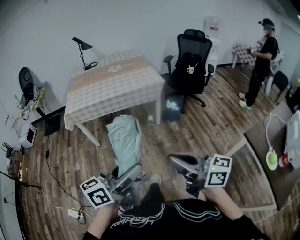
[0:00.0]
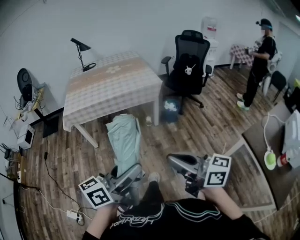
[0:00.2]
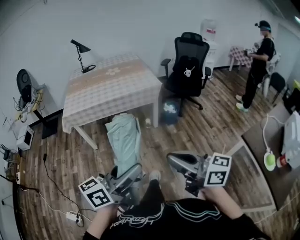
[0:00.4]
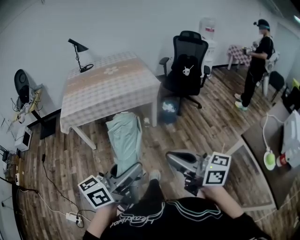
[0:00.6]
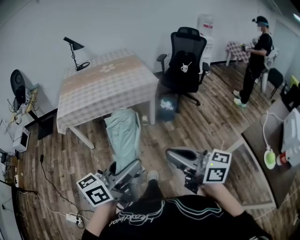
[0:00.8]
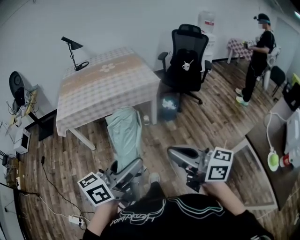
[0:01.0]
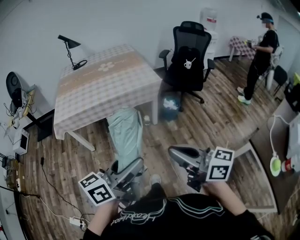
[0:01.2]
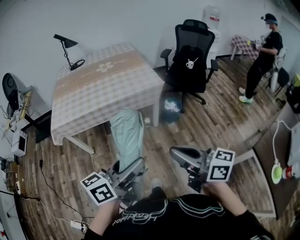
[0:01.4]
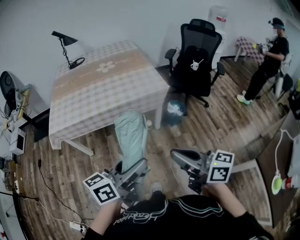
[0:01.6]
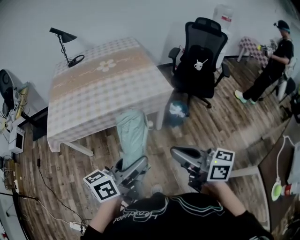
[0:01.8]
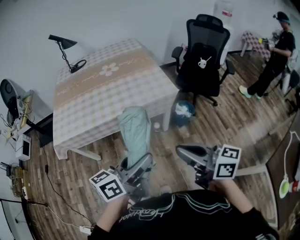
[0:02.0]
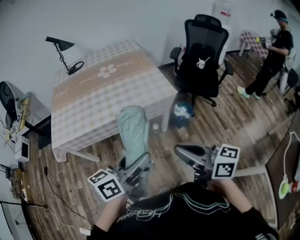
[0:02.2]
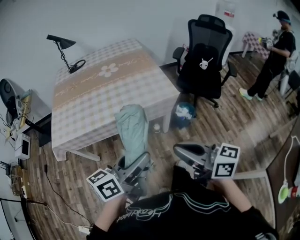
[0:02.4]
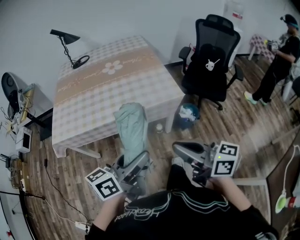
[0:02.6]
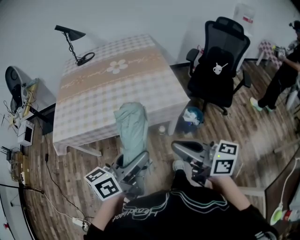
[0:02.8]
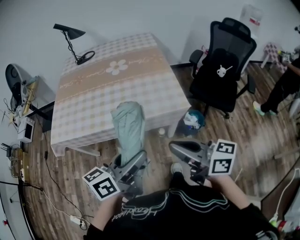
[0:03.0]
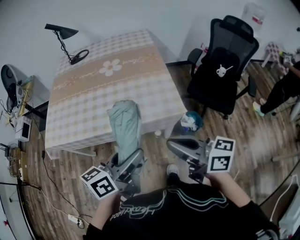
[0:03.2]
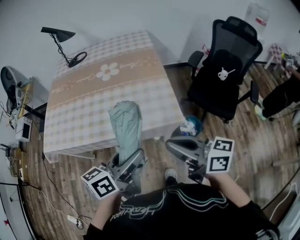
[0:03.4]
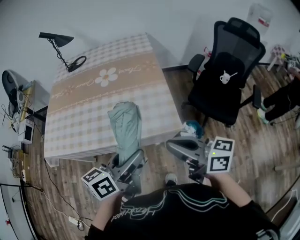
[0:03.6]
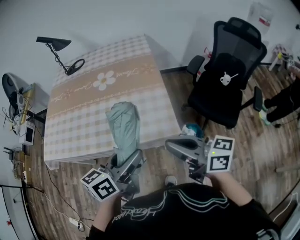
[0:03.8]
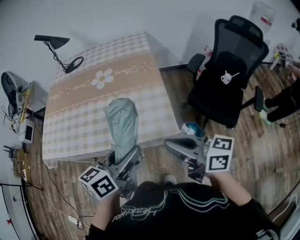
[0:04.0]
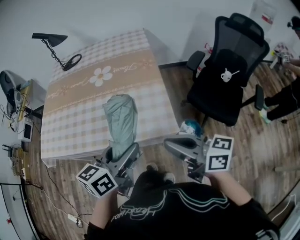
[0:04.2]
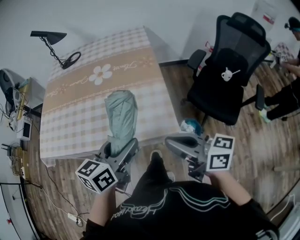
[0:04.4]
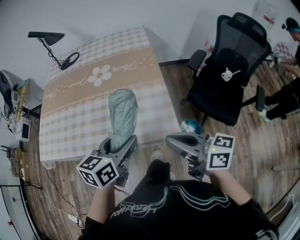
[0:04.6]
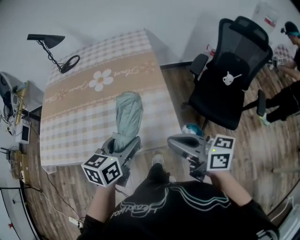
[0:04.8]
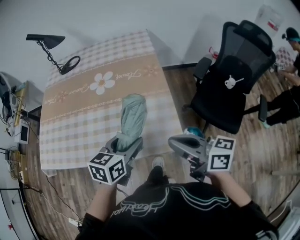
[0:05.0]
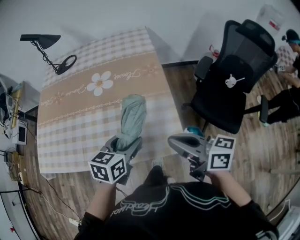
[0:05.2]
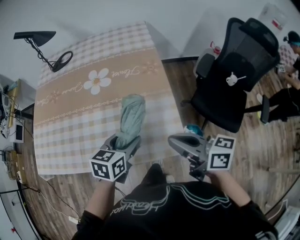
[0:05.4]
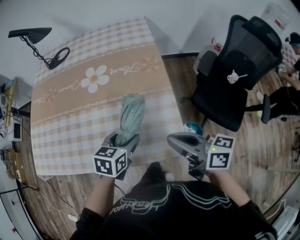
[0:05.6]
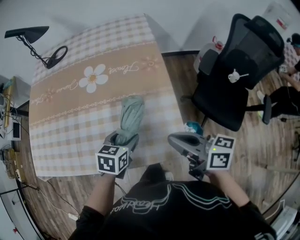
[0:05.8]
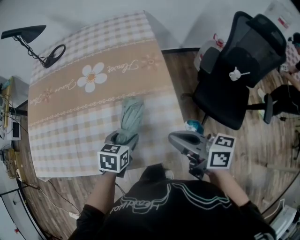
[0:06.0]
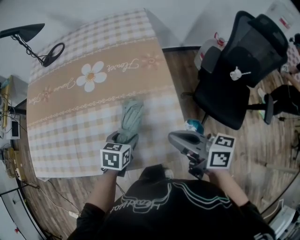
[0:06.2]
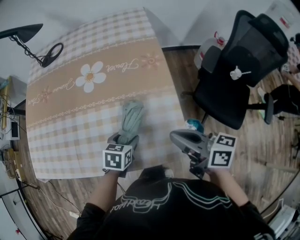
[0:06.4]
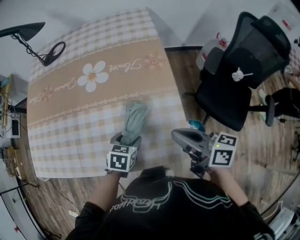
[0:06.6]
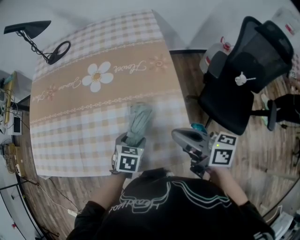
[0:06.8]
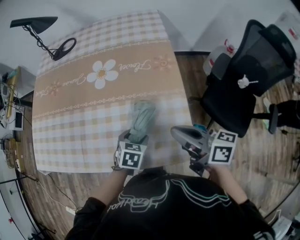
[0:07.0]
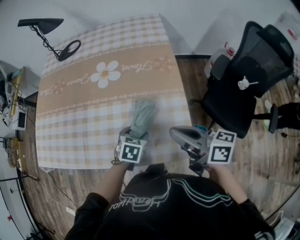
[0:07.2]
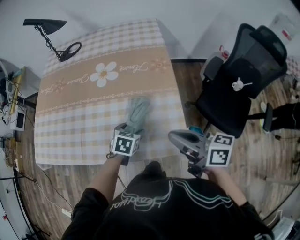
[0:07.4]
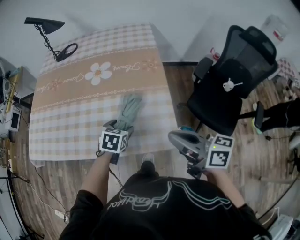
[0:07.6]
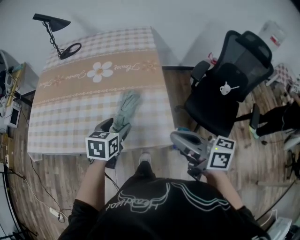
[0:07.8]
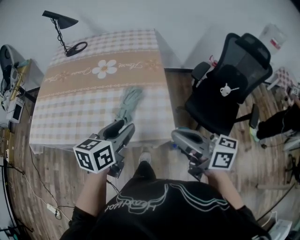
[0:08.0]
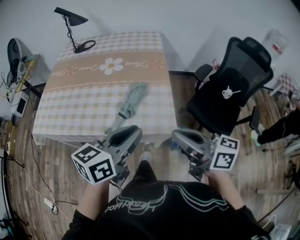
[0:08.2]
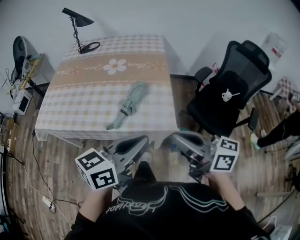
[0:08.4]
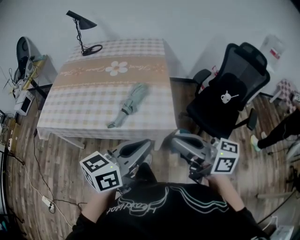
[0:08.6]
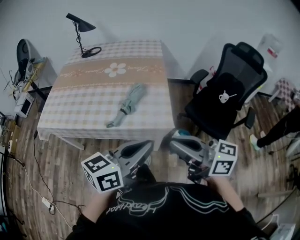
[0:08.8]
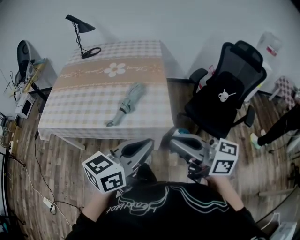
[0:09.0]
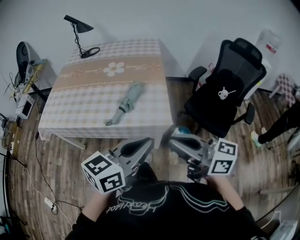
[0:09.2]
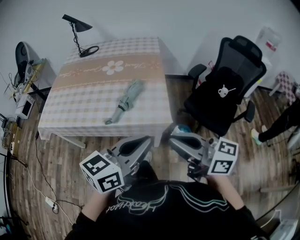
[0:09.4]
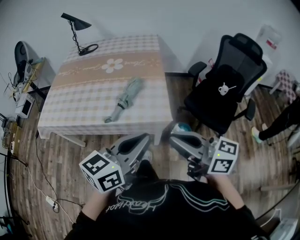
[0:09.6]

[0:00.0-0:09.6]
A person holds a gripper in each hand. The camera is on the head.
0:00.0 to 0:01.6: Both grippers travel together forward, approximately 25 cm.
0:01.6 to 0:03.2: The two grippers go roughly 25 cm forward.
0:03.2 to 0:04.8: The right gripper shifts approximately 15 cm forward and to the right. The left gripper heads forward, covering roughly 20 cm, and rotates approximately 30 degrees.
0:04.8 to 0:06.4: The right gripper heads forward and downward, covering some 15 cm. Meanwhile the left gripper shifts about 25 cm downward and forward, and swivels approximately 30 degrees.
0:06.4 to 0:08.0: The left gripper moves upward and backward, roughly 25 cm, and tips its fingers upward by roughly 30 degrees. The right gripper moves backward and upward, some 20 cm.
0:08.0 to 0:09.6: The right gripper travels backward by about 15 cm; the left gripper heads backward and upward, covering roughly 20 cm, and closes its fingers.

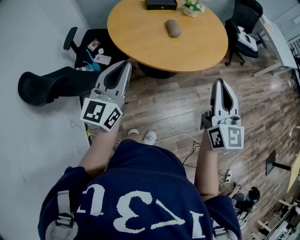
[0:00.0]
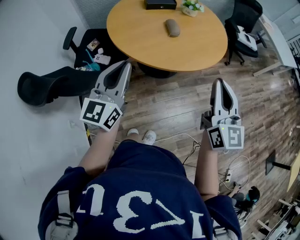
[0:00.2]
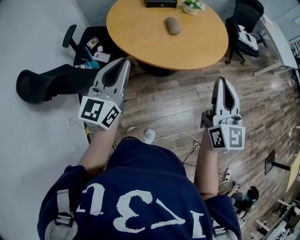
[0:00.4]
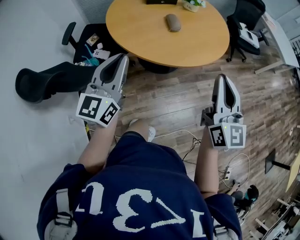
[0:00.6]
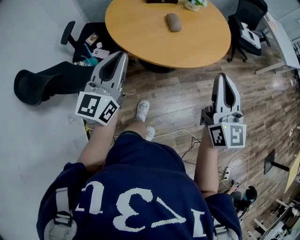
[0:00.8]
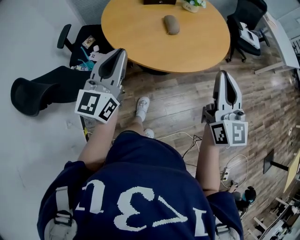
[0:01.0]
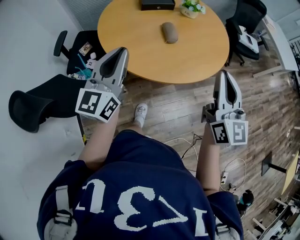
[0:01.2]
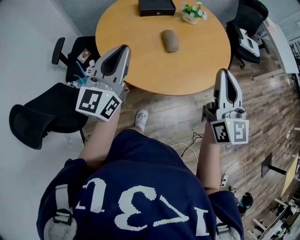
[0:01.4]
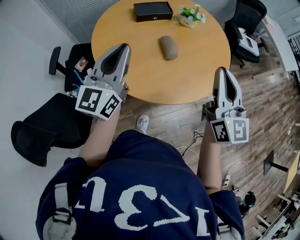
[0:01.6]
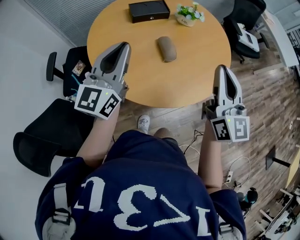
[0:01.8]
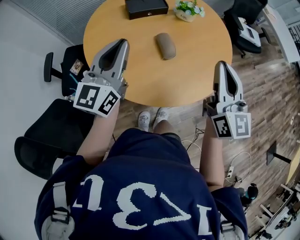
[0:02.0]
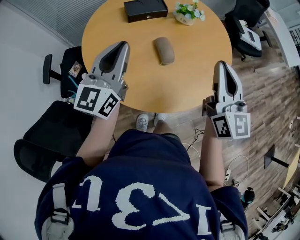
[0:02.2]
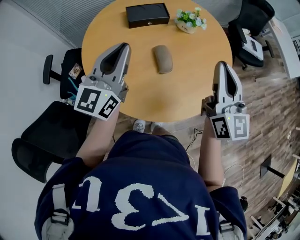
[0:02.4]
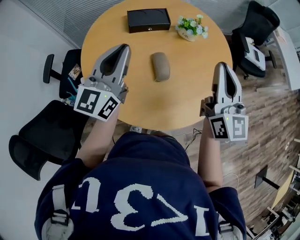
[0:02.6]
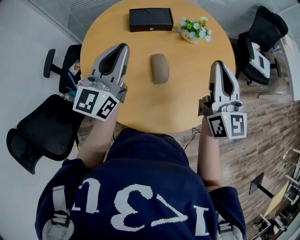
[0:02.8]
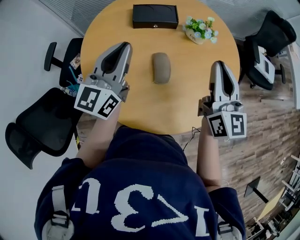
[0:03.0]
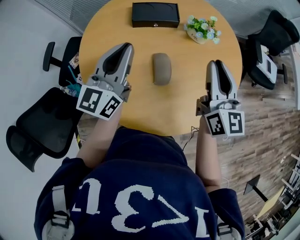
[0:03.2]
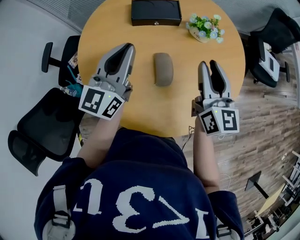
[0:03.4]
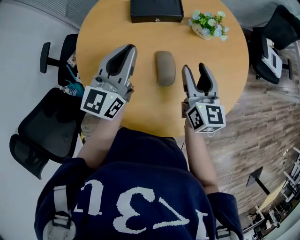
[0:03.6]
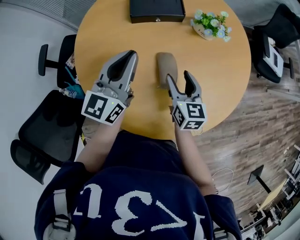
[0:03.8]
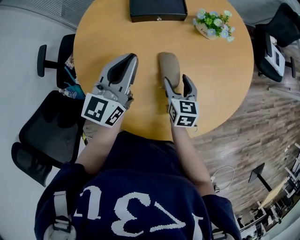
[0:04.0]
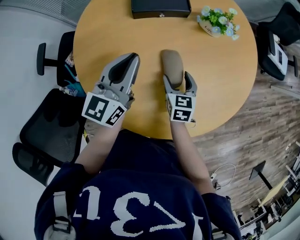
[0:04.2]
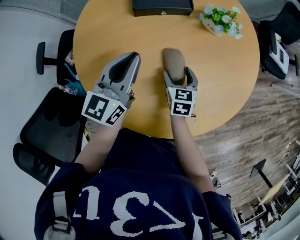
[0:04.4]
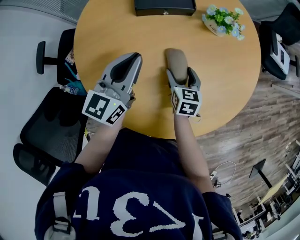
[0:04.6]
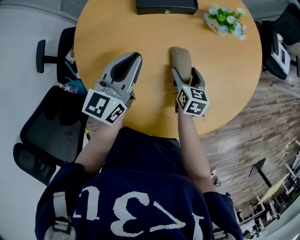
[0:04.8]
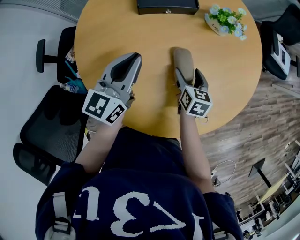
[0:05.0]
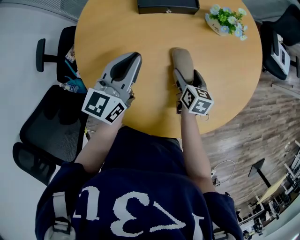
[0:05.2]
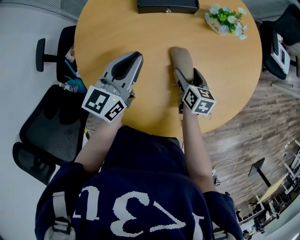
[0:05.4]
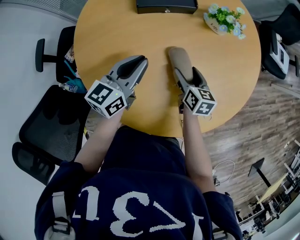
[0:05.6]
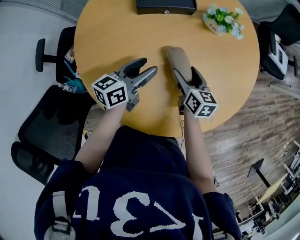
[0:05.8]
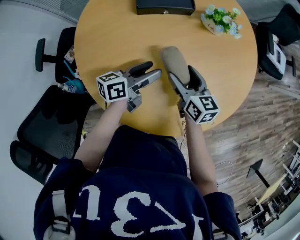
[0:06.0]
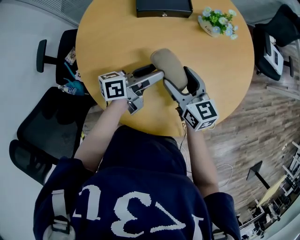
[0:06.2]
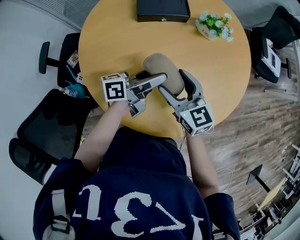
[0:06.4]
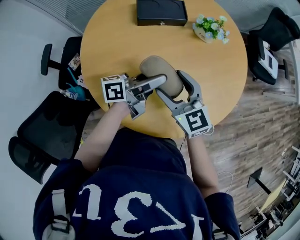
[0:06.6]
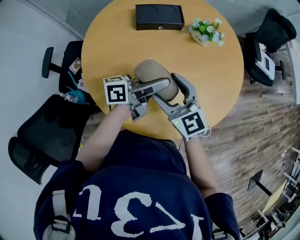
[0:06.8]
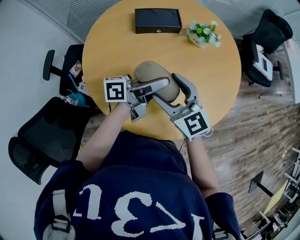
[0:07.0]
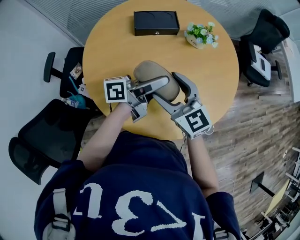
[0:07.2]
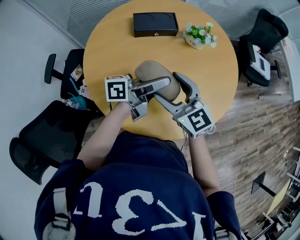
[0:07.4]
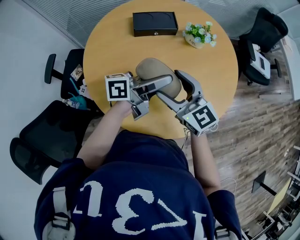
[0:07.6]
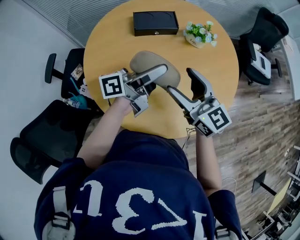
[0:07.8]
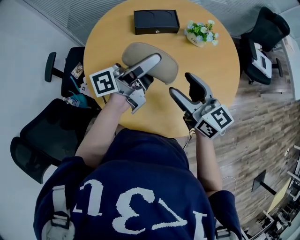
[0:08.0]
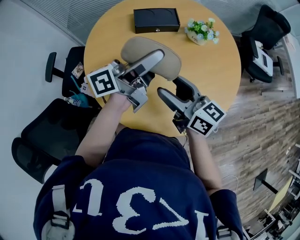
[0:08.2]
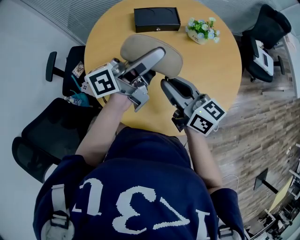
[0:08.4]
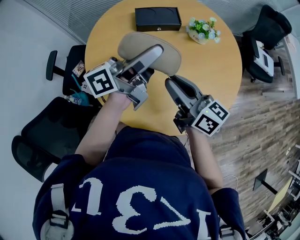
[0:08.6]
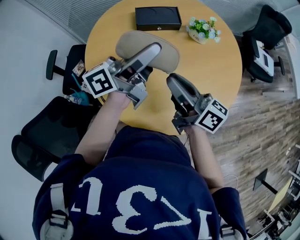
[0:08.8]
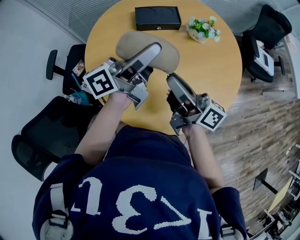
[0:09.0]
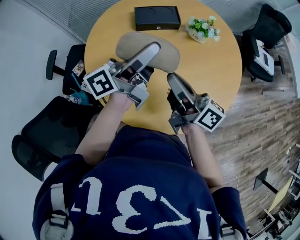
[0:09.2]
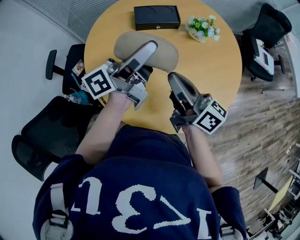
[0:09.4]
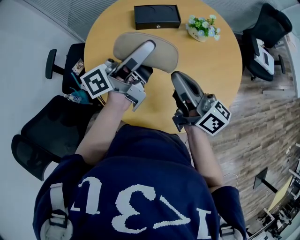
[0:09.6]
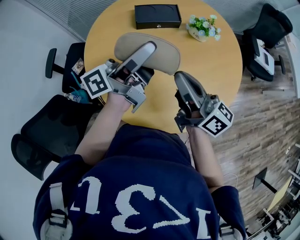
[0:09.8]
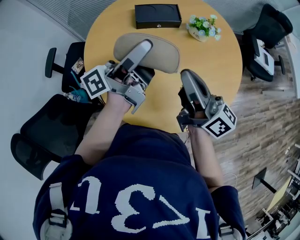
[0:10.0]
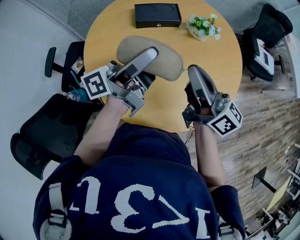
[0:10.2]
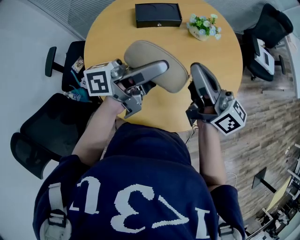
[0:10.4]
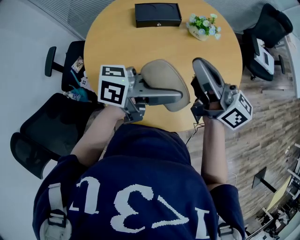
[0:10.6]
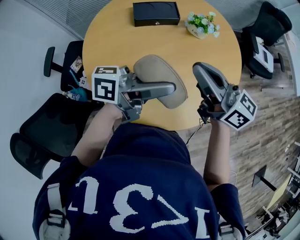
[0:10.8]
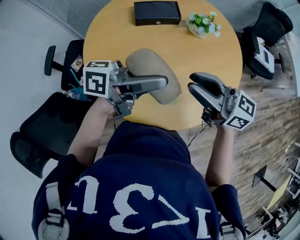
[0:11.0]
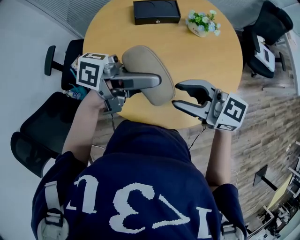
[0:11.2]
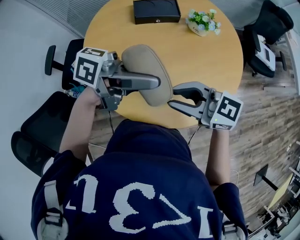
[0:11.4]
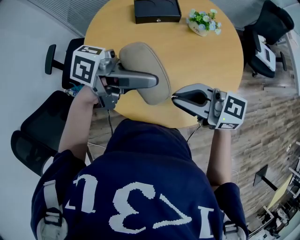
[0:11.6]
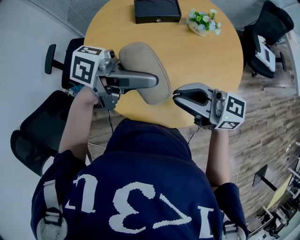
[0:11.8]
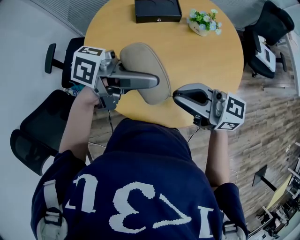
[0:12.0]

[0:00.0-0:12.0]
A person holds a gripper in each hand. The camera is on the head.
0:00.0 to 0:01.6: The two grippers go about 25 cm forward.
0:01.6 to 0:03.0: The grippers both shift forward by roughly 20 cm.
0:03.0 to 0:04.4: The left gripper shifts some 15 cm downward and forward. The right gripper heads downward, covering approximately 35 cm, angles its fingers downward, by some 50 degrees, and opens.
0:04.4 to 0:06.0: The right gripper is displaced upward by some 5 cm, and changes its angle by about 30 degrees; the left gripper heads downward and to the right, covering about 15 cm, turns by approximately 50 degrees, and opens its fingers.
0:06.0 to 0:07.6: The right gripper is displaced upward and backward by roughly 20 cm, and changes its angle by approximately 30 degrees, while the left gripper travels upward by about 15 cm, and rotates roughly 20 degrees.
0:07.6 to 0:09.0: The right gripper rolls clockwise, seen from behind, by approximately 60 degrees, and closes. The left gripper goes some 10 cm upward and to the left, and changes its angle by some 20 degrees.
0:09.0 to 0:10.4: The right gripper heads upward, covering about 5 cm, and swivels some 20 degrees, while the left gripper moves backward, some 5 cm.
0:10.4 to 0:12.0: The left gripper turns by some 30 degrees. The right gripper shifts by approximately 10 cm, swivels about 40 degrees, and opens and closes again.

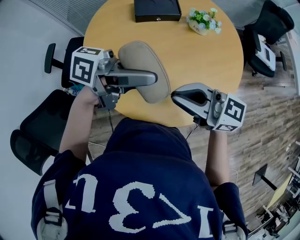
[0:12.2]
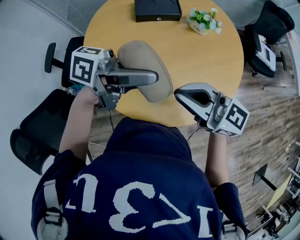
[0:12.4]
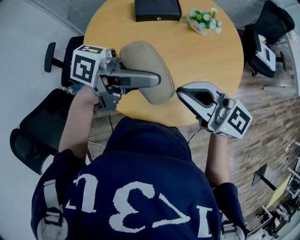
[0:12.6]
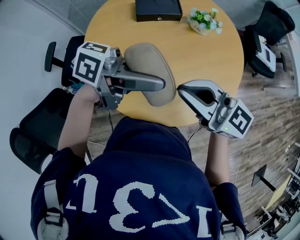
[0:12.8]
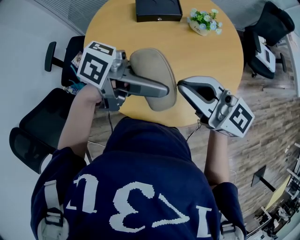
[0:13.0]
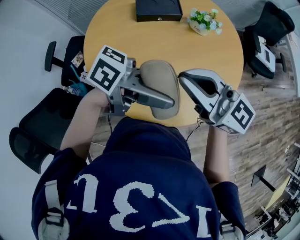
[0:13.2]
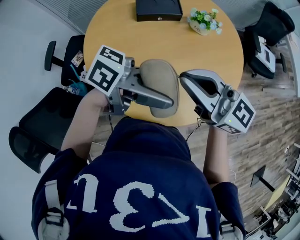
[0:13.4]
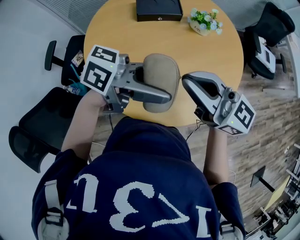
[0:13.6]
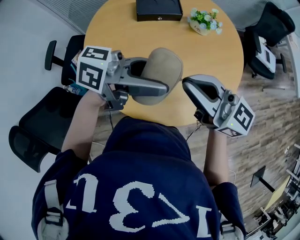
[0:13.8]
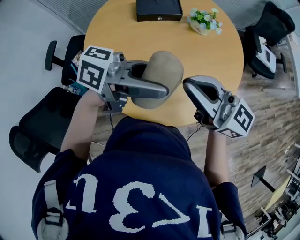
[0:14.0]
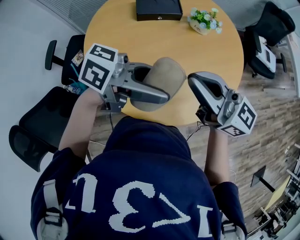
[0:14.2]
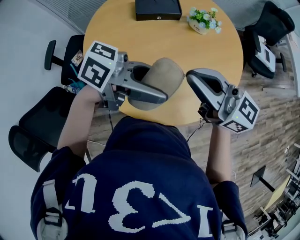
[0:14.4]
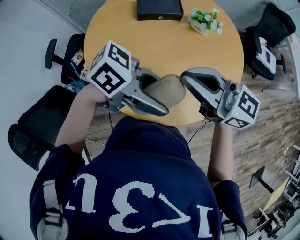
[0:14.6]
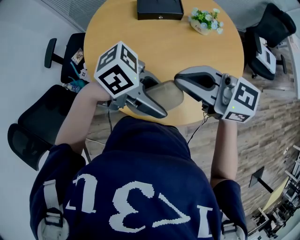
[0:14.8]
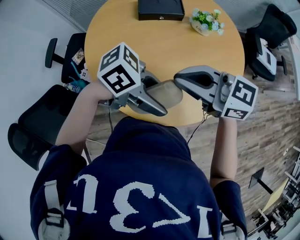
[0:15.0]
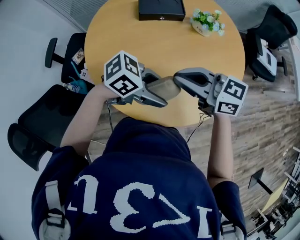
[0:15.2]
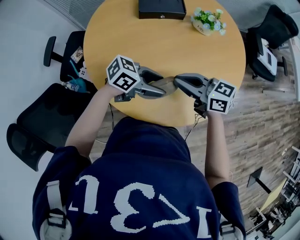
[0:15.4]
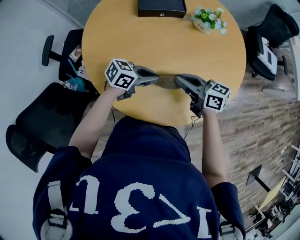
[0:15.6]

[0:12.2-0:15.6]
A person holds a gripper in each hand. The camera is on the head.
0:12.2 to 0:13.8: The right gripper changes place by about 5 cm.
0:13.8 to 0:15.6: The two grippers go some 25 cm downward. The right gripper changes its angle by about 30 degrees. Meanwhile the left gripper rotates some 30 degrees, and closes up.
